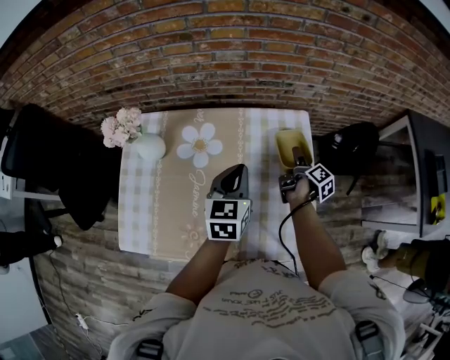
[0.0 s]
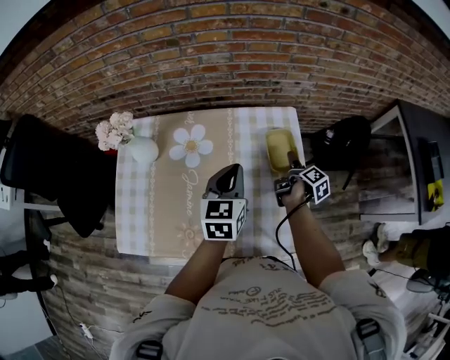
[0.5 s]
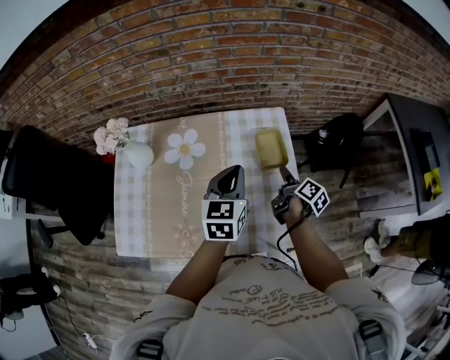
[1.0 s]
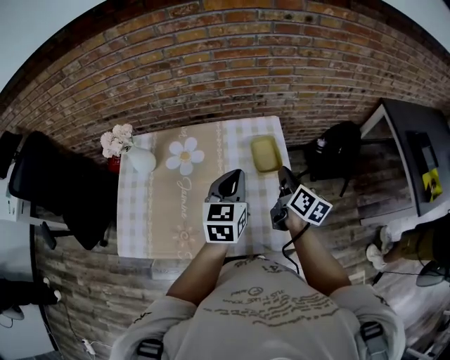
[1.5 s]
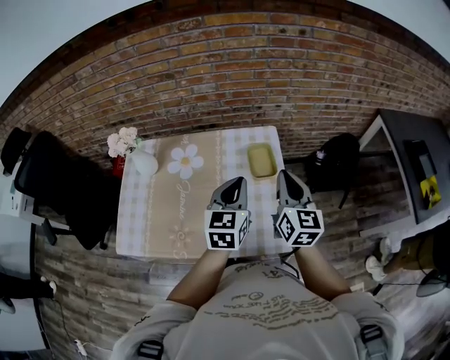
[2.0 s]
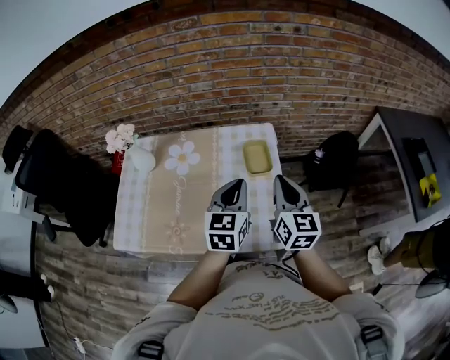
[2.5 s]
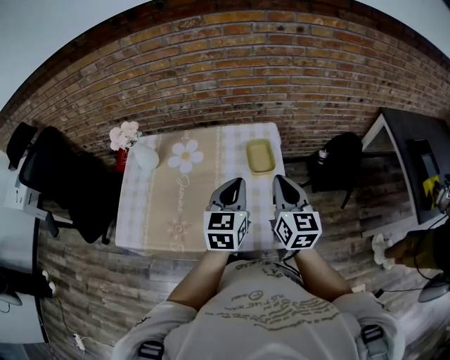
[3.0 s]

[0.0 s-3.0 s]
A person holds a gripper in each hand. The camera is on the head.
0.0 to 1.5 s: The right gripper goes roughly 20 cm upward and backward, swivels some 40 degrees, and closes. The left gripper moves to the right, upward and backward, approximately 10 cm.
1.5 to 3.0 s: The left gripper goes some 5 cm backward; the right gripper travels upward and backward by some 10 cm, and changes its angle by about 30 degrees.

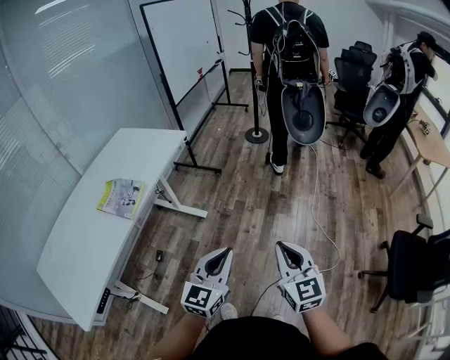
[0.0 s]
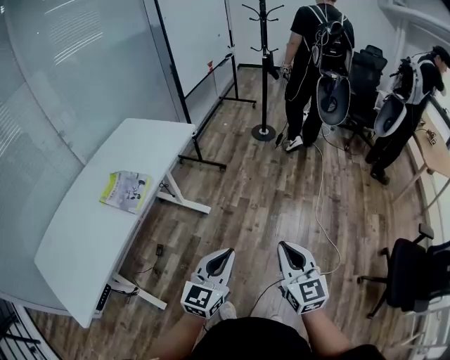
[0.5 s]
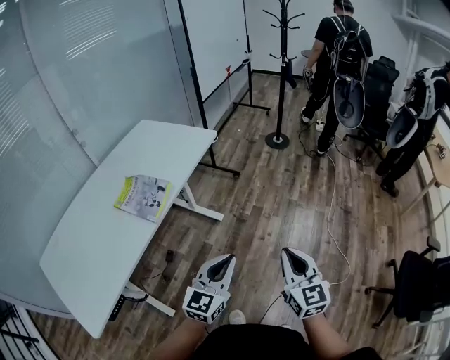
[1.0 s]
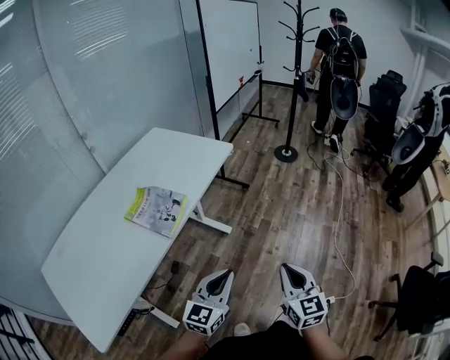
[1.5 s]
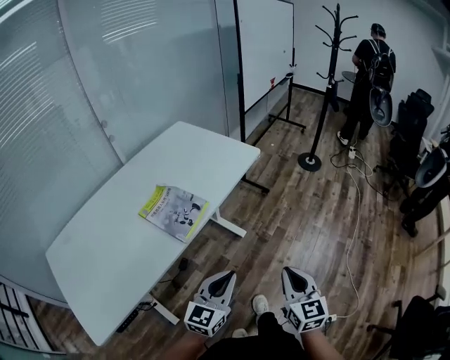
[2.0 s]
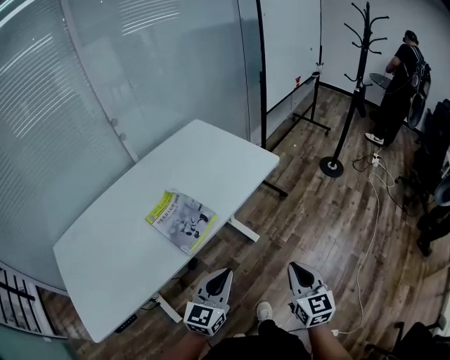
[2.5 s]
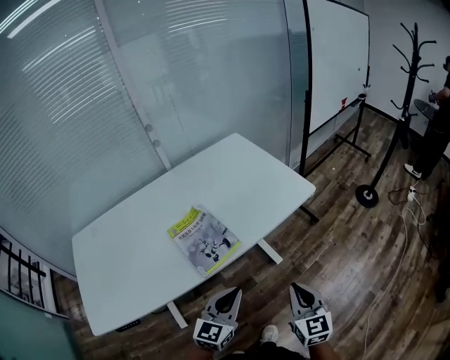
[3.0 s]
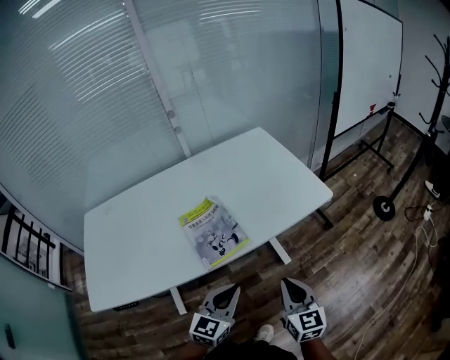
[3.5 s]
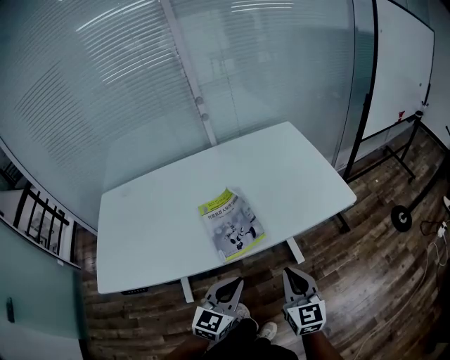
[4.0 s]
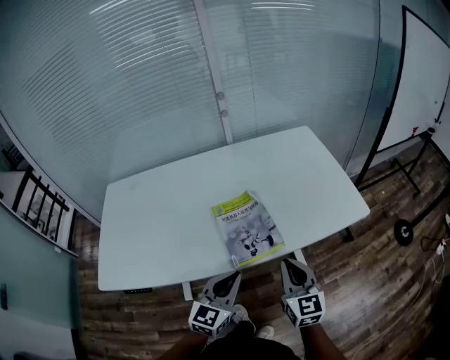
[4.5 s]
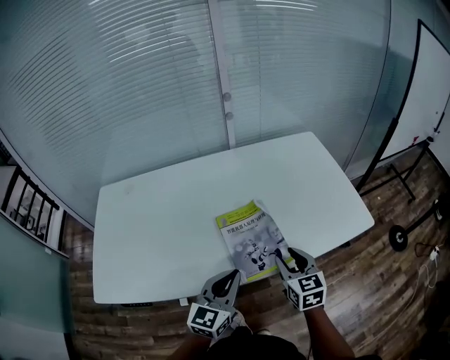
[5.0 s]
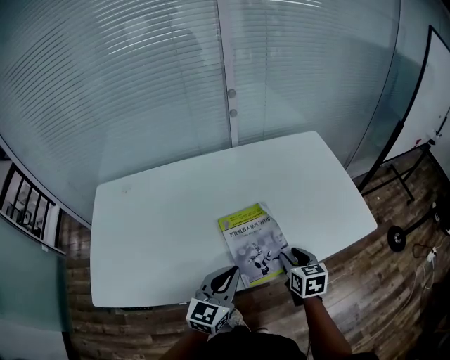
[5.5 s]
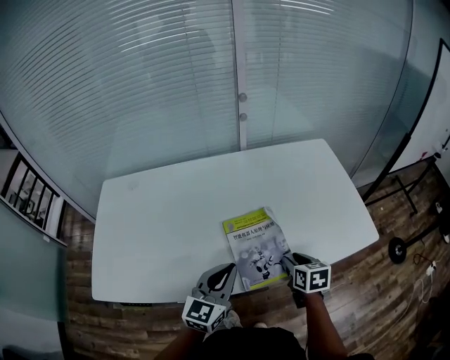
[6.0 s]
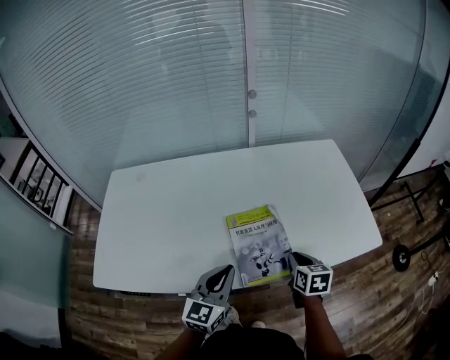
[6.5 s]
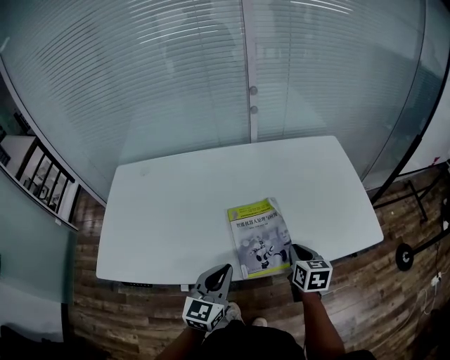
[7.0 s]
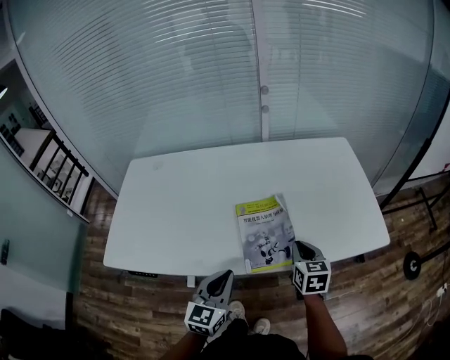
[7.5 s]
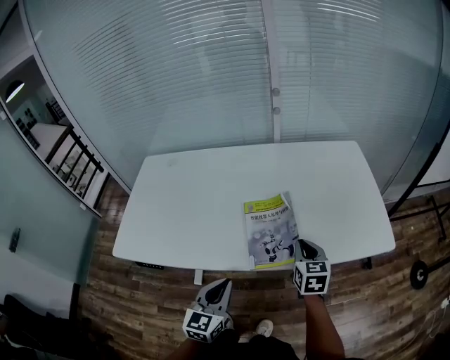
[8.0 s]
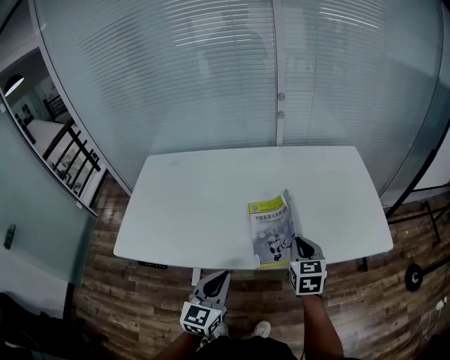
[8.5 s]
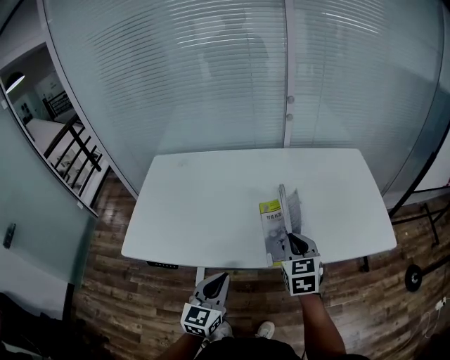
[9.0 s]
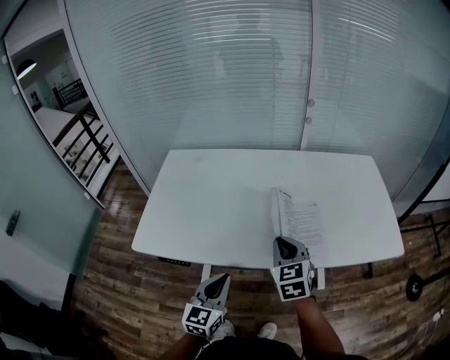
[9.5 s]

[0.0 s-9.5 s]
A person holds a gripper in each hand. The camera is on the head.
0.0 to 2.0 s: The left gripper is displaced to the left by roughly 25 cm, while the right gripper heads to the left and forward, covering some 25 cm.
2.0 to 4.0 s: The right gripper changes place by about 25 cm, and swivels approximately 40 degrees. Meanwhile the left gripper changes place by approximately 15 cm, and swivels about 40 degrees.
4.0 to 5.5 s: The right gripper goes roughly 20 cm forward, downward and to the left, swivels about 30 degrees, and opens up; the left gripper travels forward and to the left by about 15 cm.
5.5 to 7.5 s: The right gripper closes up. Meanwhile the left gripper moves backward, about 5 cm.
7.5 to 9.5 s: The left gripper goes roughly 15 cm to the left and backward. Meanwhile the right gripper shifts some 20 cm to the left and upward, and turns by about 30 degrees.

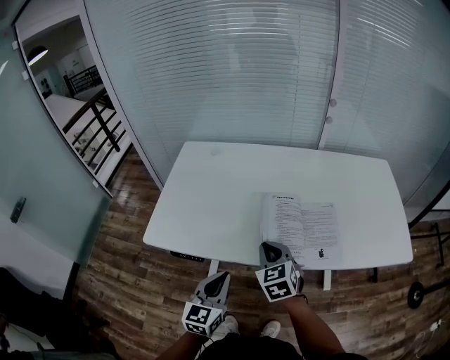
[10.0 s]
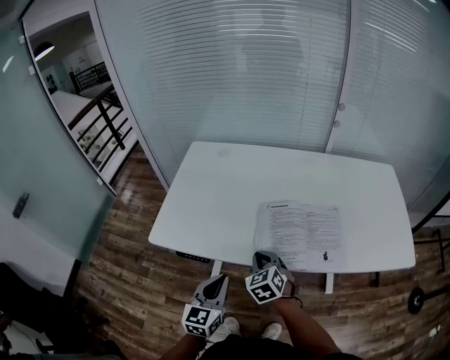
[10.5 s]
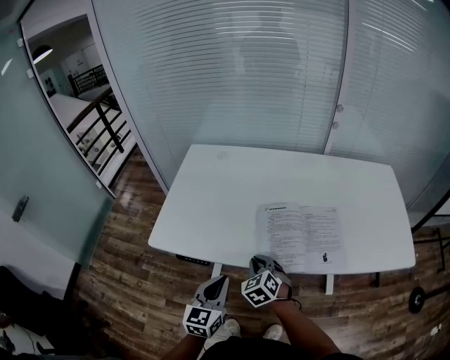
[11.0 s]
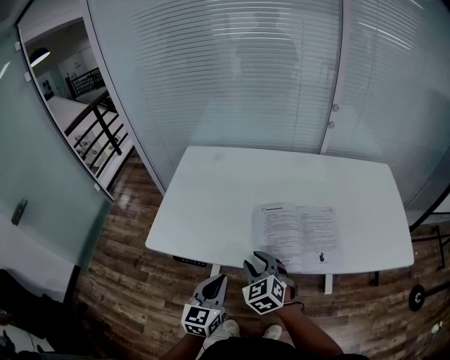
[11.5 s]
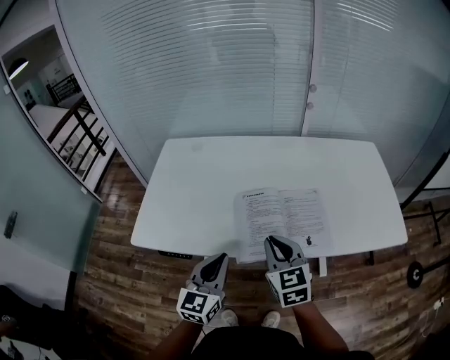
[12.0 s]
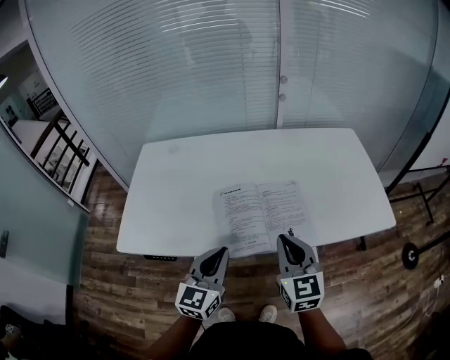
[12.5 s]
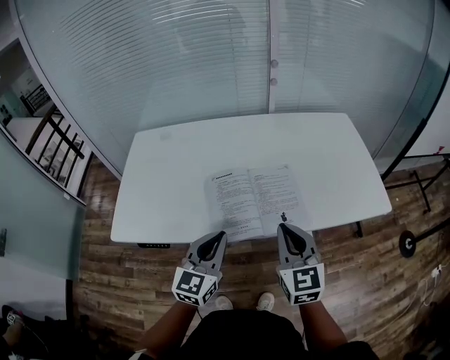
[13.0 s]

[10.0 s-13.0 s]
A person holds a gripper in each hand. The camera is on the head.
10.0 to 11.5 s: The right gripper shifts roughly 5 cm to the left, reaches approximately 10 cm downward, then returns, and opens up.
11.5 to 13.0 s: The left gripper shifts approximately 15 cm to the right and upward; the right gripper goes about 25 cm to the right and upward, swivels some 40 degrees, and closes up.

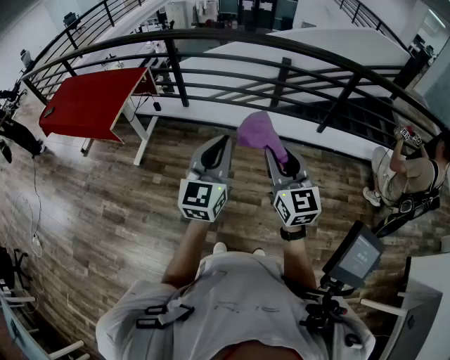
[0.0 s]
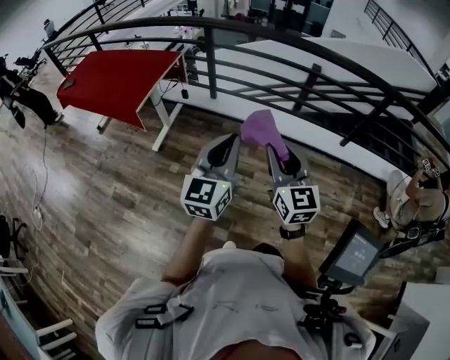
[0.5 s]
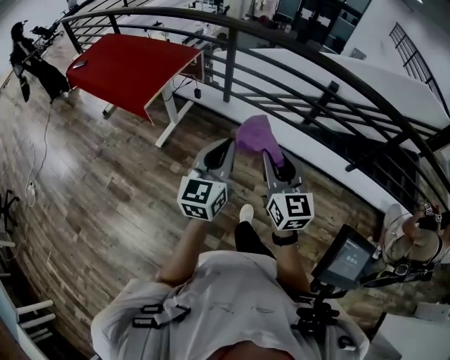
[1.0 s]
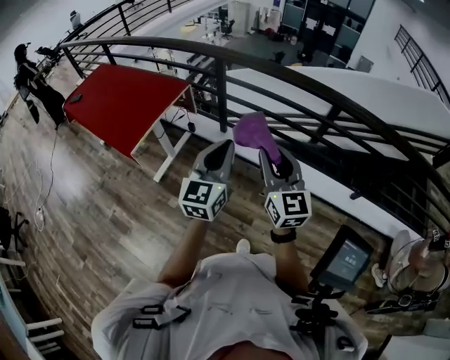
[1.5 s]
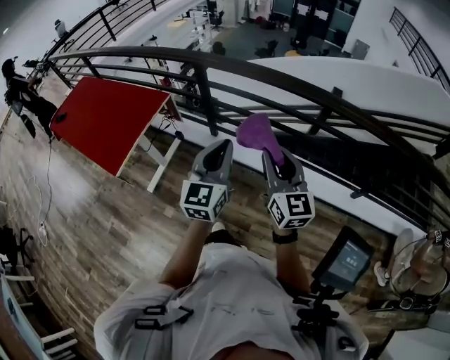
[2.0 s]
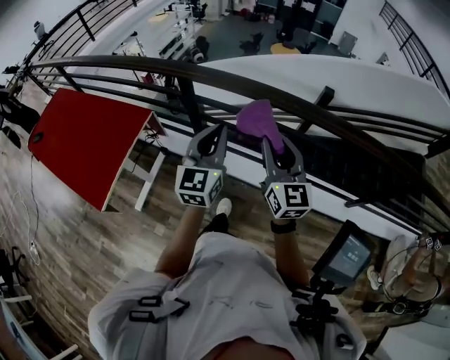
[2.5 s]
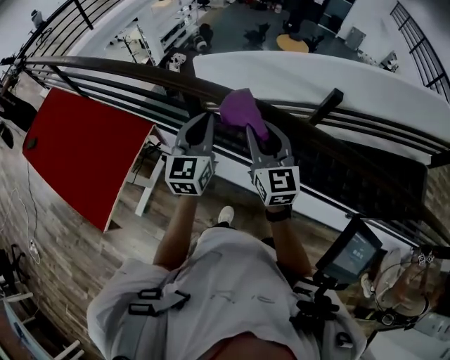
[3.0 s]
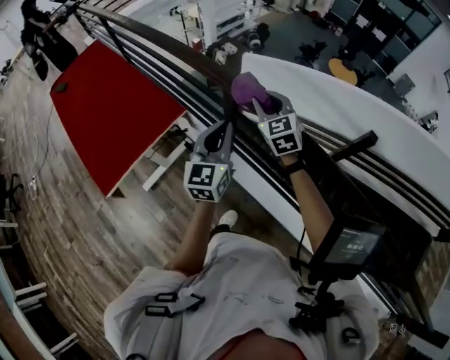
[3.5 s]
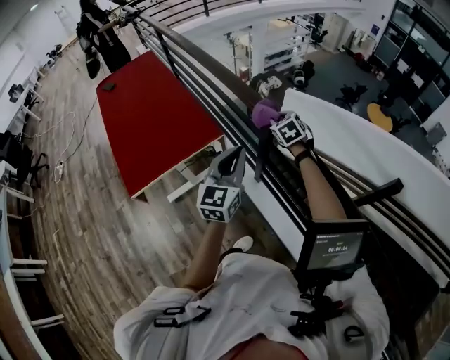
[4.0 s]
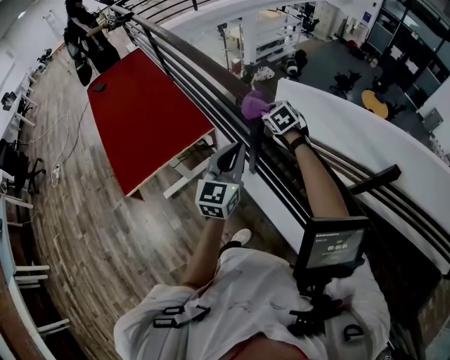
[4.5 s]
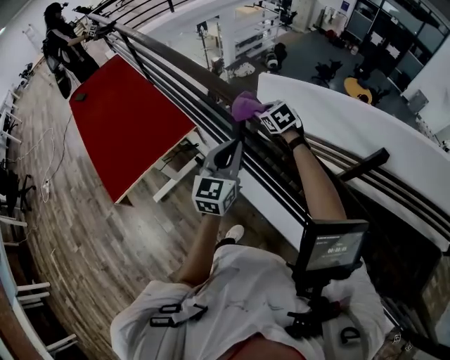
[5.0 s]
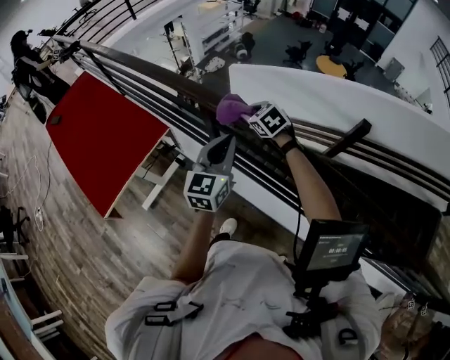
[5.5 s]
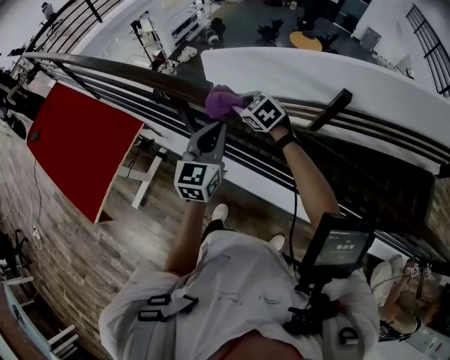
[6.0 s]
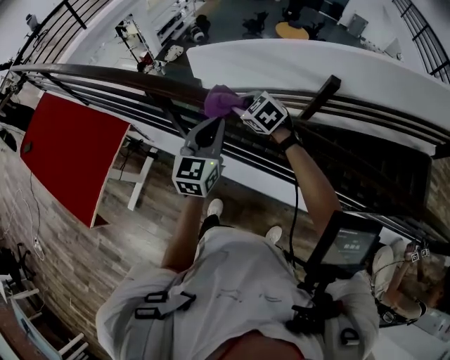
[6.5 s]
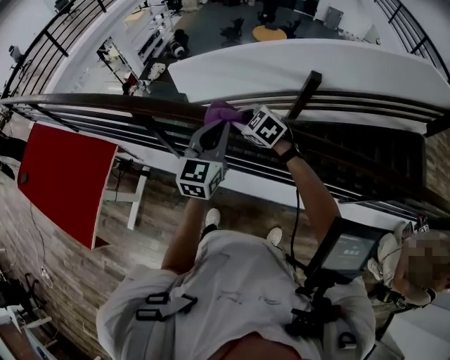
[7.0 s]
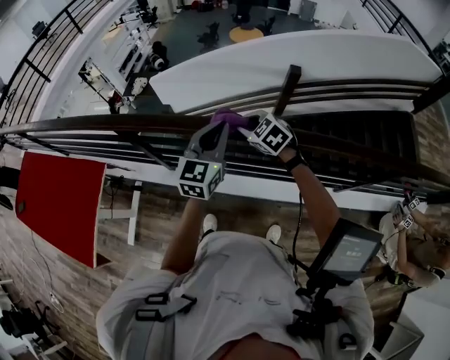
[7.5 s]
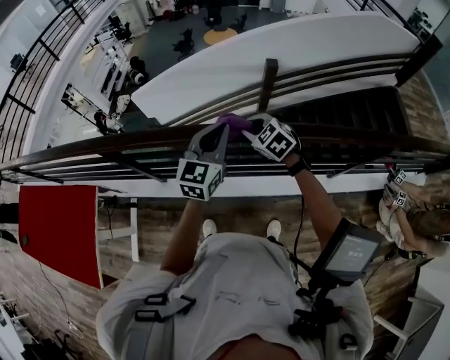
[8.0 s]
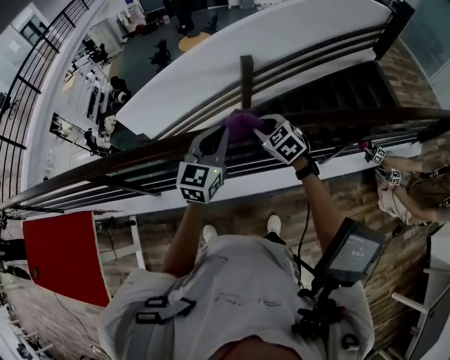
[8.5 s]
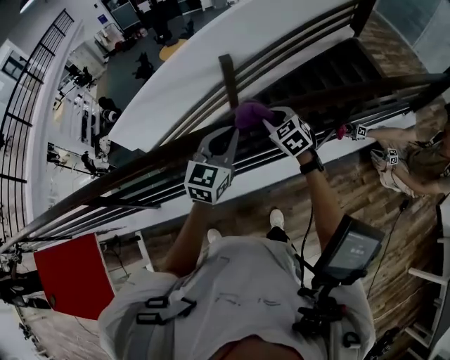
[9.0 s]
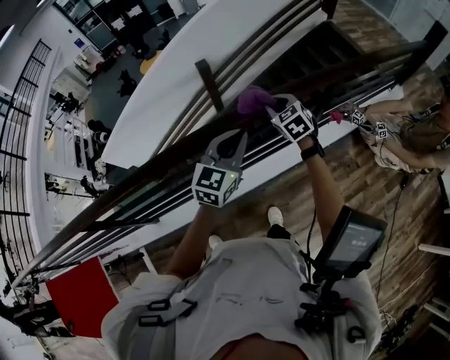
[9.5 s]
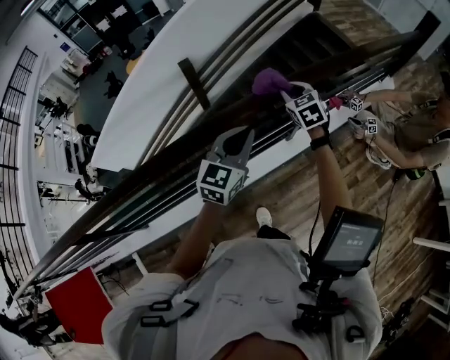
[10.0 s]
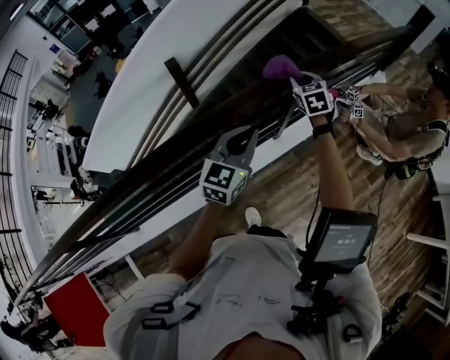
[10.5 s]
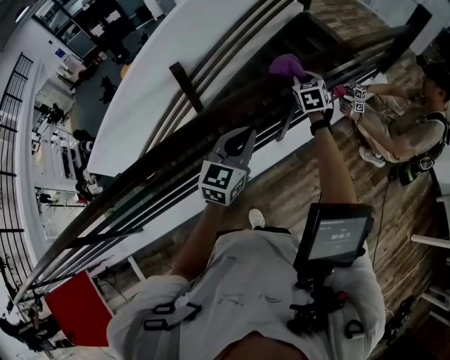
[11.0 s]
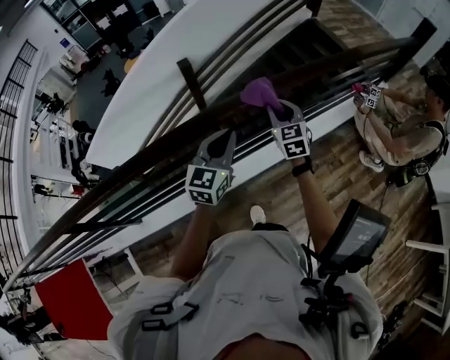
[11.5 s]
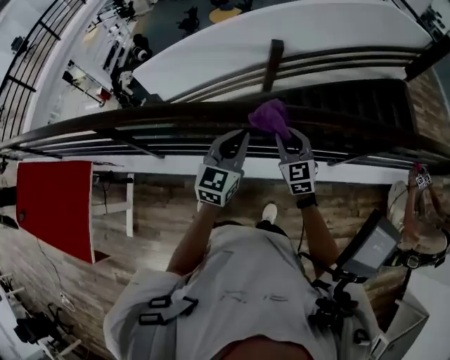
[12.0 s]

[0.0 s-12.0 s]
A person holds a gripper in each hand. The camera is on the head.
0.0 to 2.0 s: The pair of grippers is taken forward, roughly 50 cm.
2.0 to 4.0 s: The left gripper moves some 40 cm, and swivels approximately 30 degrees, while the right gripper shifts by roughly 70 cm, and tips its fingers downward by roughly 40 degrees.
4.0 to 6.0 s: The left gripper moves to the right, about 20 cm, and changes its angle by approximately 30 degrees. The right gripper is displaced to the right and backward by approximately 20 cm.
6.0 to 8.0 s: The left gripper changes place by some 25 cm, and rotates some 30 degrees. Meanwhile the right gripper changes place by roughly 35 cm, and rotates about 20 degrees.
8.0 to 10.0 s: The pair of grippers is taken some 50 cm. The right gripper swivels approximately 50 degrees. Meanwhile the left gripper rotates roughly 40 degrees.
10.0 to 12.0 s: The right gripper changes place by about 40 cm, and changes its angle by about 30 degrees. The left gripper shifts by about 30 cm, and turns by approximately 30 degrees.
